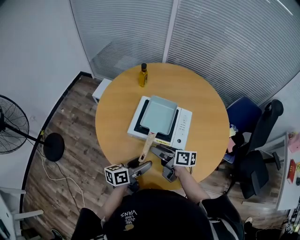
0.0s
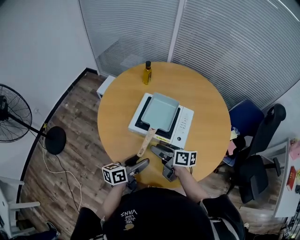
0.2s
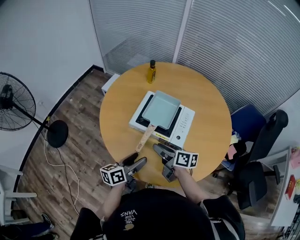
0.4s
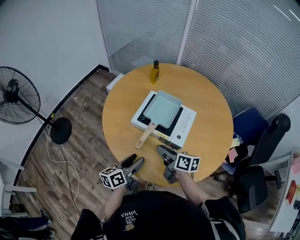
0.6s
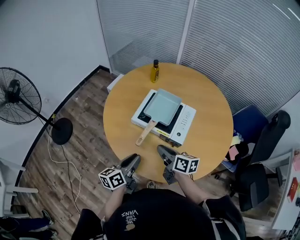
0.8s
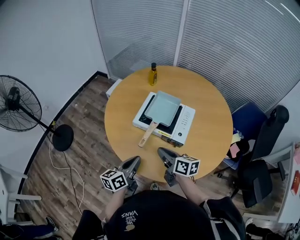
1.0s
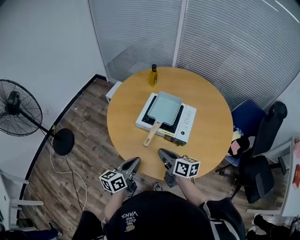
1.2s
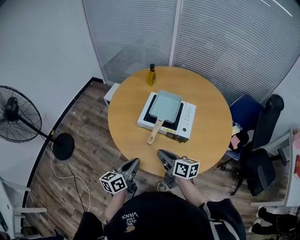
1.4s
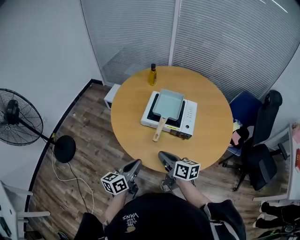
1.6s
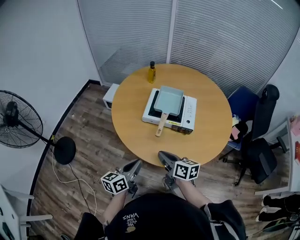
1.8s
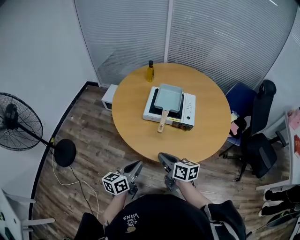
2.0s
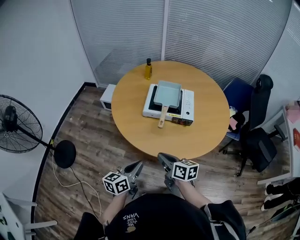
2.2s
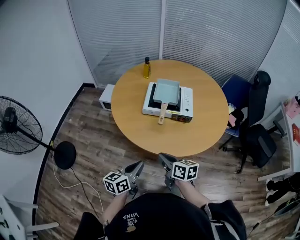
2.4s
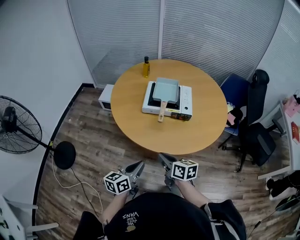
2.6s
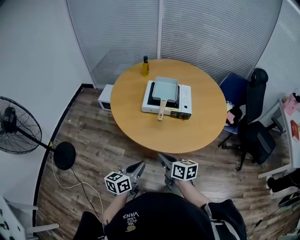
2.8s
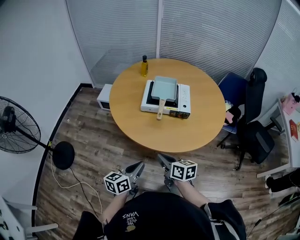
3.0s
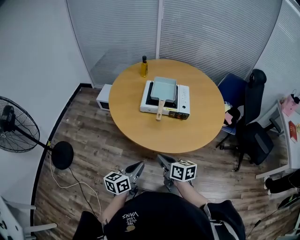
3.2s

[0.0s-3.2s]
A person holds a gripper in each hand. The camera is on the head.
0.0s to 1.6s: The right gripper moves backward and to the left, some 15 cm, turns by approximately 20 degrees, and closes up. The left gripper heads to the left and backward, covering approximately 15 cm, and closes up.
1.6s to 3.2s: Both grippers travel together backward, roughly 10 cm.

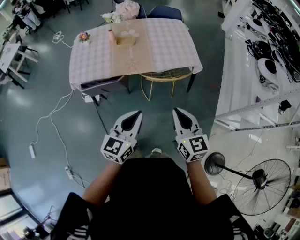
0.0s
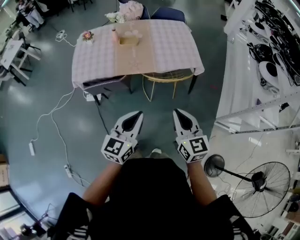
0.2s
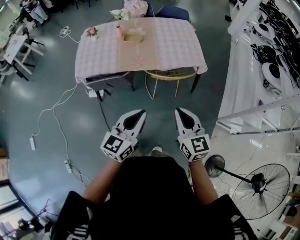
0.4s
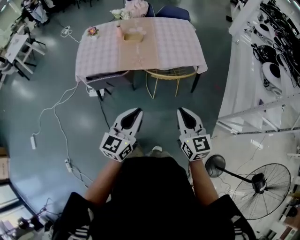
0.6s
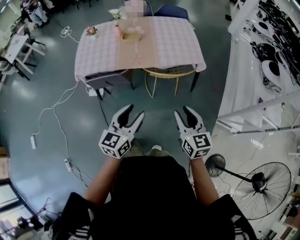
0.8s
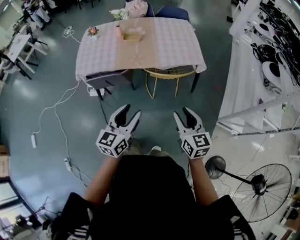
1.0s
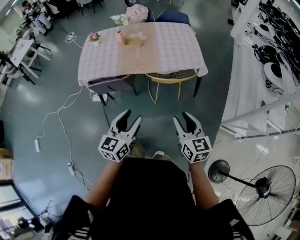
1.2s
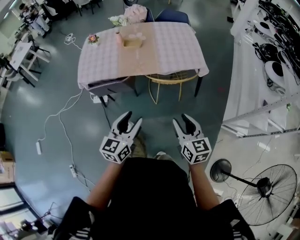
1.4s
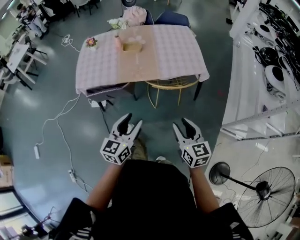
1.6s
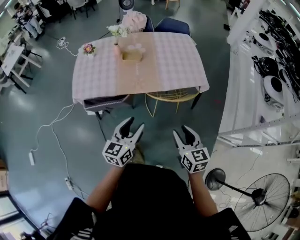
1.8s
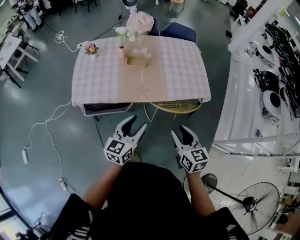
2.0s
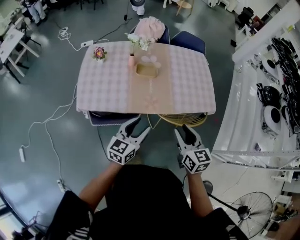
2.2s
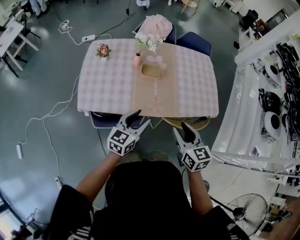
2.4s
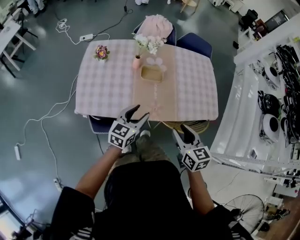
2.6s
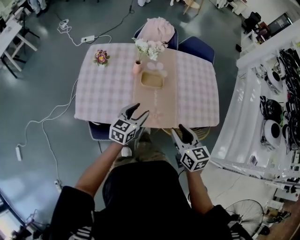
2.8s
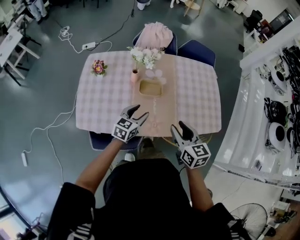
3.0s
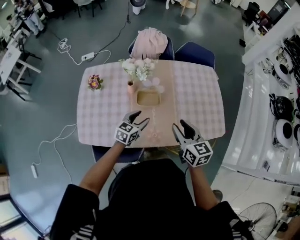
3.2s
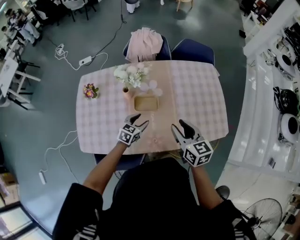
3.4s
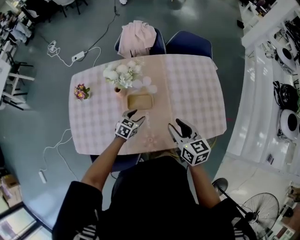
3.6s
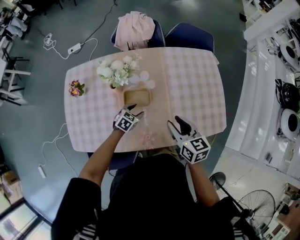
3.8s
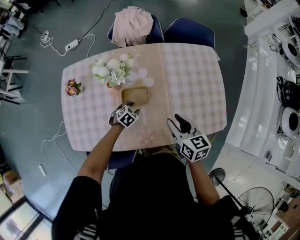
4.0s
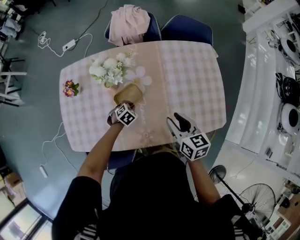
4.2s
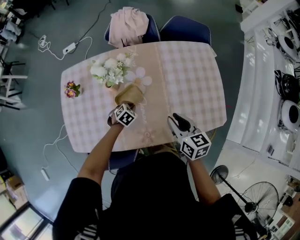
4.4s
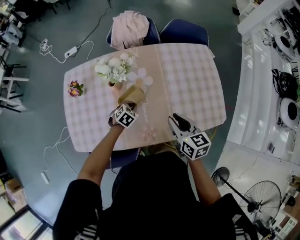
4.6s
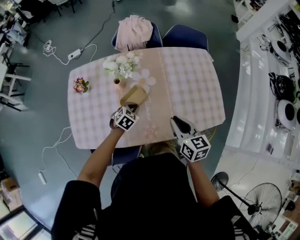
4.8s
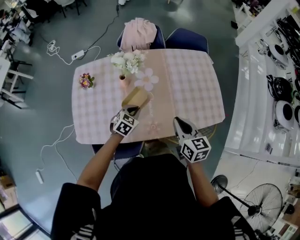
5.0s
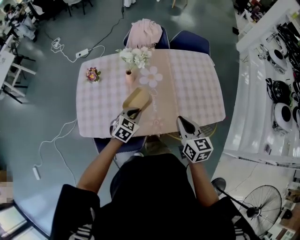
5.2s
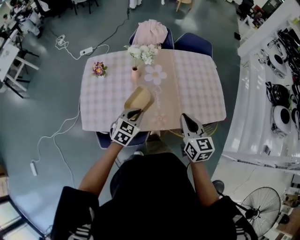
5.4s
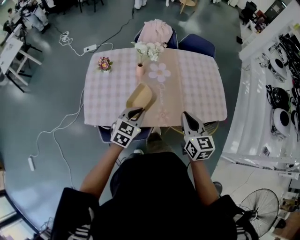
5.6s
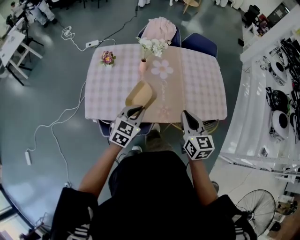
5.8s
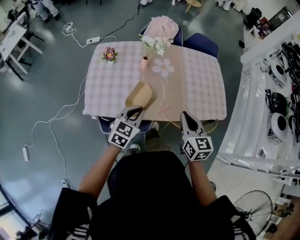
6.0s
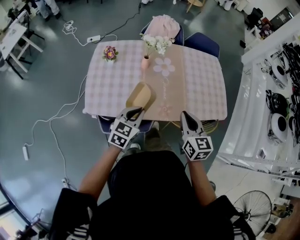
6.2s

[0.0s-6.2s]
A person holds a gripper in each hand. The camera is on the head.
0.0s to 1.6s: The left gripper changes place by approximately 5 cm, and opens up, while the right gripper moves downward, approximately 5 cm, and opens up.
1.6s to 3.2s: The pair of grippers is taken forward, about 50 cm. The left gripper swivels approximately 20 degrees.
3.2s to 4.6s: The left gripper travels downward and forward by roughly 15 cm, tips its fingers downward by roughly 30 degrees, and closes its fingers, while the right gripper goes roughly 10 cm forward and downward.
4.6s to 6.2s: The right gripper shifts roughly 20 cm backward and upward. Meanwhile the left gripper heads backward and upward, covering roughly 35 cm, and points its fingers roughly 40 degrees further upward.

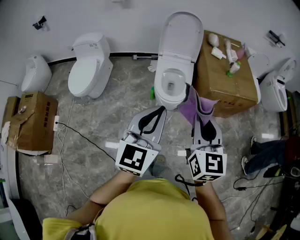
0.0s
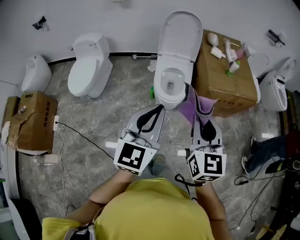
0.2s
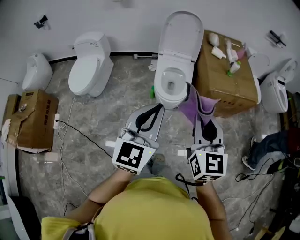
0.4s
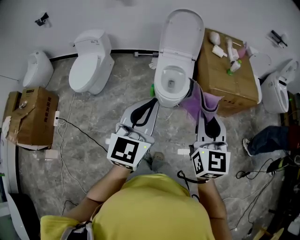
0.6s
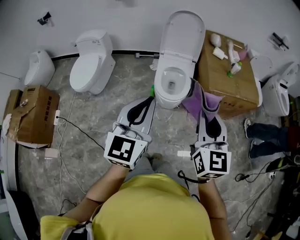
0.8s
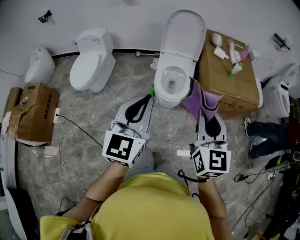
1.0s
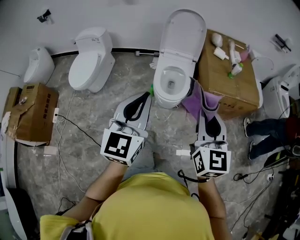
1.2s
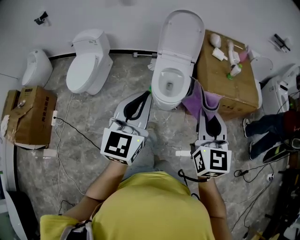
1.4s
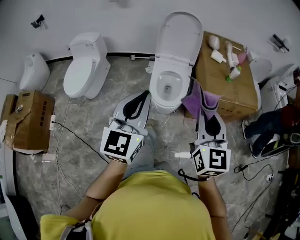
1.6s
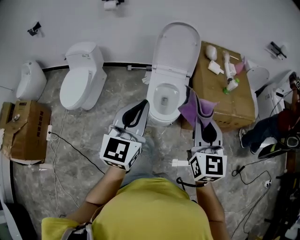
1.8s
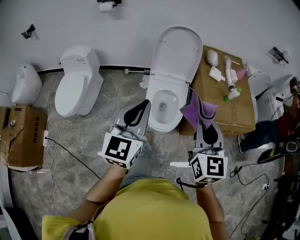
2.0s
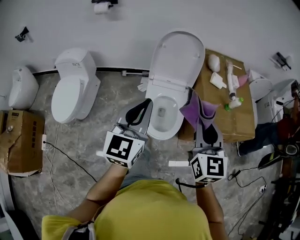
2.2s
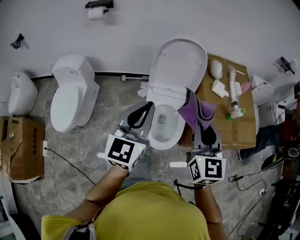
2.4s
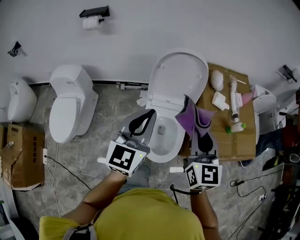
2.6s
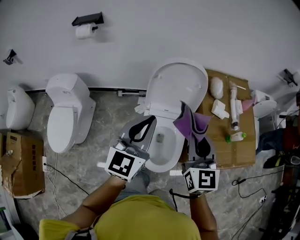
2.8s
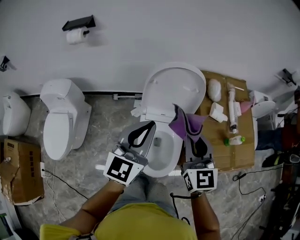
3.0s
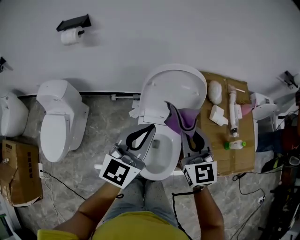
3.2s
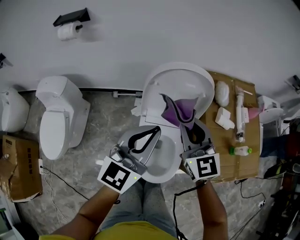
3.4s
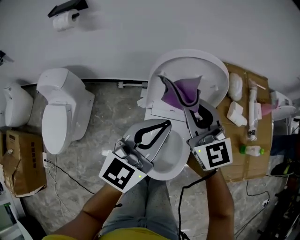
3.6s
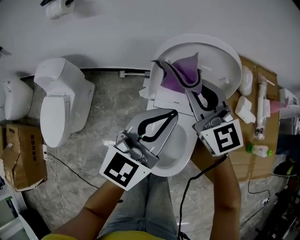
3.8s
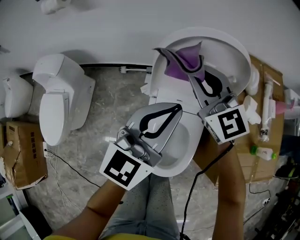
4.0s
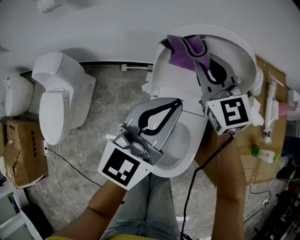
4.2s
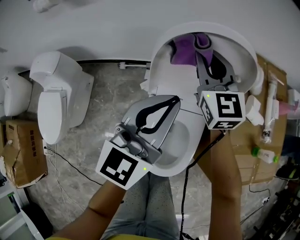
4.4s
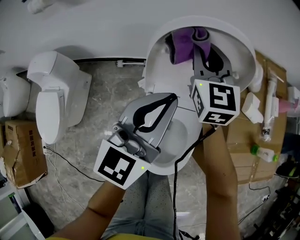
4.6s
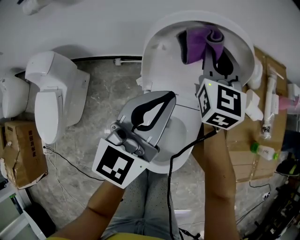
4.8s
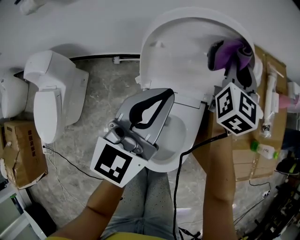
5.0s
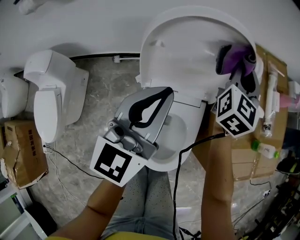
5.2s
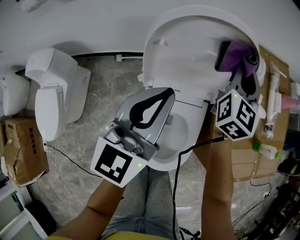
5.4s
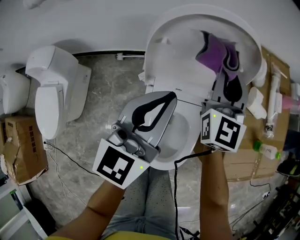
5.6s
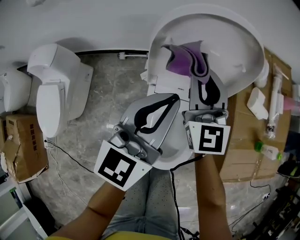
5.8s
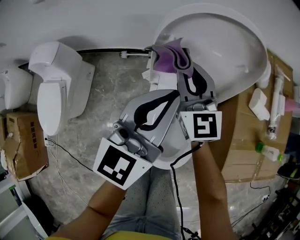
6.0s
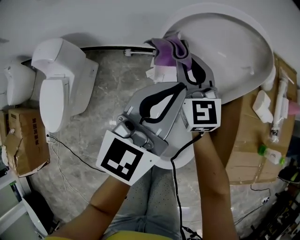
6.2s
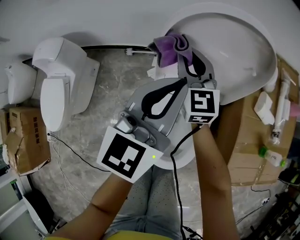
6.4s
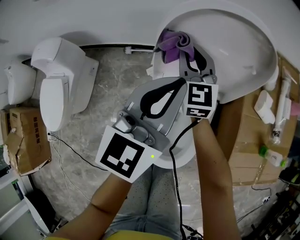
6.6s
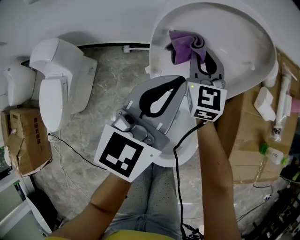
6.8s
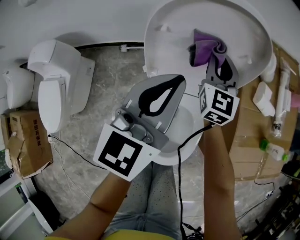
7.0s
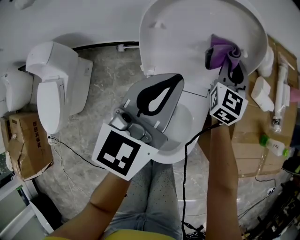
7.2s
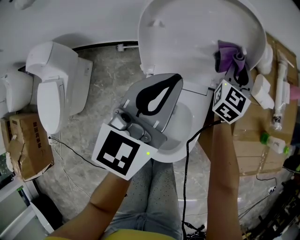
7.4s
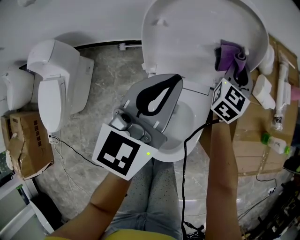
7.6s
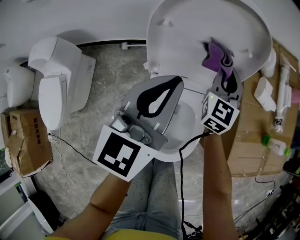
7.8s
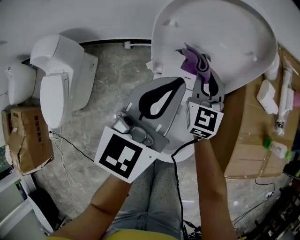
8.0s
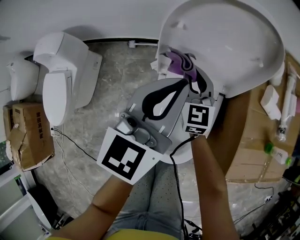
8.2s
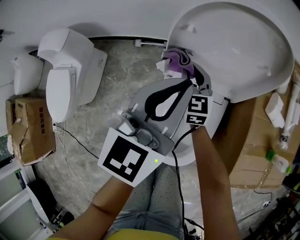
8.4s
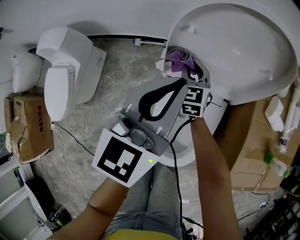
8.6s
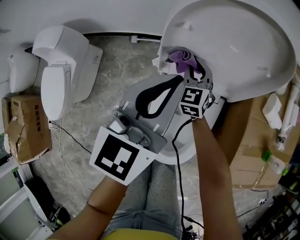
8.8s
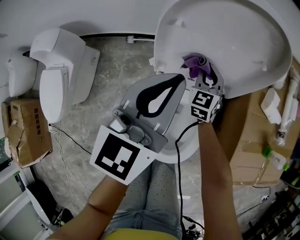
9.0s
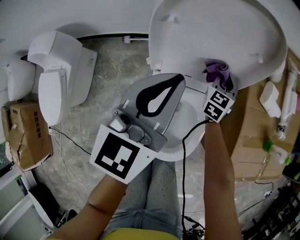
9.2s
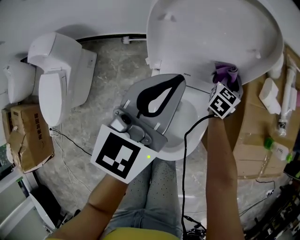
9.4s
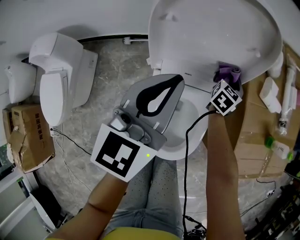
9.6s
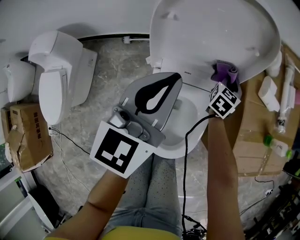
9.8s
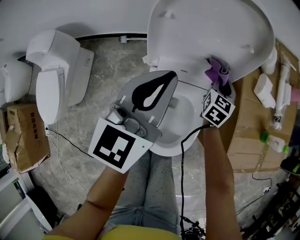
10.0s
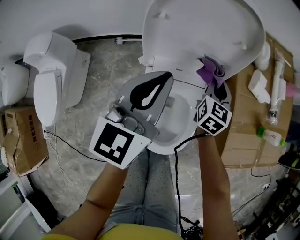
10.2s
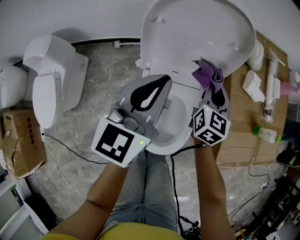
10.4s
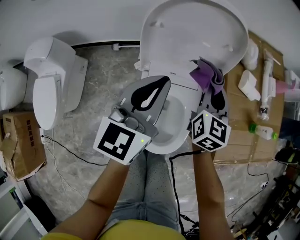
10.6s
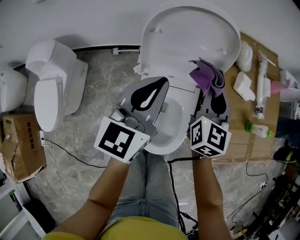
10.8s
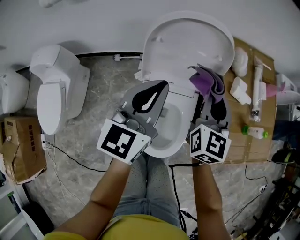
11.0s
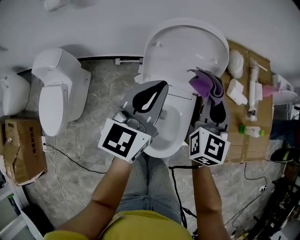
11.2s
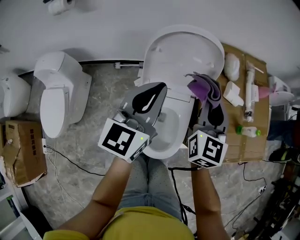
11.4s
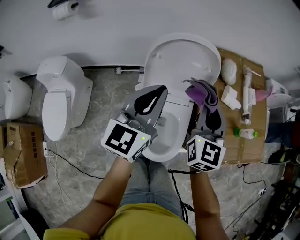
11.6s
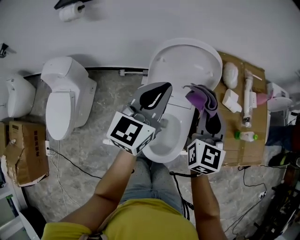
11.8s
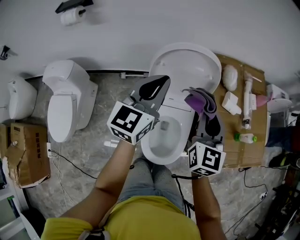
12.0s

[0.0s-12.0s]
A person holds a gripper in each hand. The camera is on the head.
0.0s to 1.6s: Both grippers move forward, about 10 cm.
1.6s to 3.0s: The pair of grippers is taken forward, approximately 50 cm.
3.0s to 4.4s: The left gripper is displaced forward and downward by about 20 cm, while the right gripper heads forward and downward, covering some 30 cm.
4.4s to 6.0s: The right gripper shifts approximately 10 cm backward and downward, and reaches about 15 cm to the right, then returns.
6.0s to 7.6s: The right gripper travels to the right by about 20 cm, and changes its angle by about 40 degrees.
7.6s to 9.0s: The right gripper moves to the left and downward, about 20 cm, and rotates some 30 degrees.
9.0s to 10.4s: The right gripper travels to the right, upward and backward by approximately 20 cm, and changes its angle by approximately 30 degrees, while the left gripper ends up some 5 cm from where it was.
10.4s to 12.0s: The left gripper is displaced upward by about 15 cm. Meanwhile the right gripper is displaced upward by approximately 25 cm.

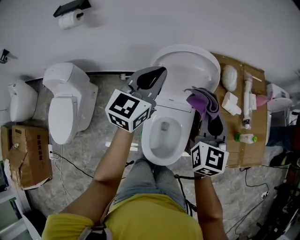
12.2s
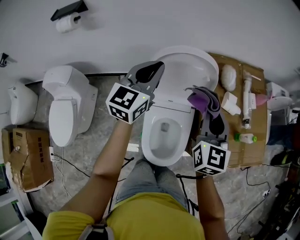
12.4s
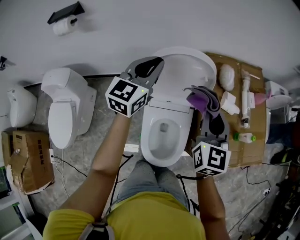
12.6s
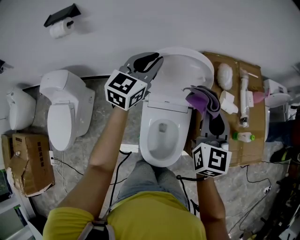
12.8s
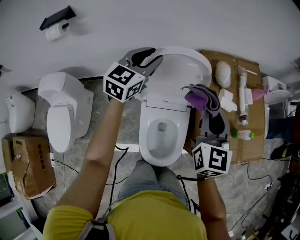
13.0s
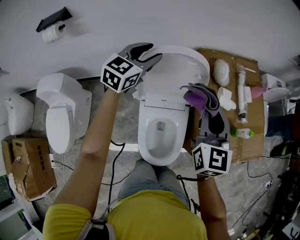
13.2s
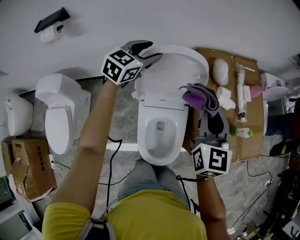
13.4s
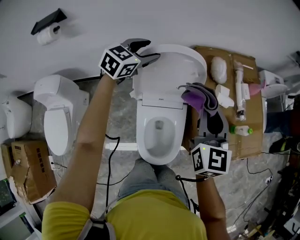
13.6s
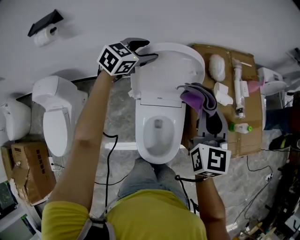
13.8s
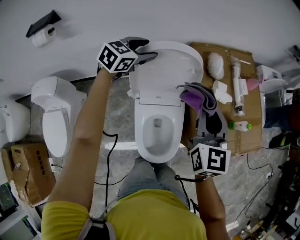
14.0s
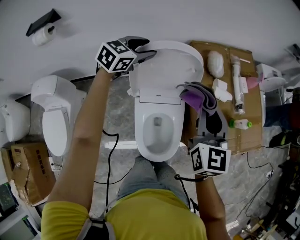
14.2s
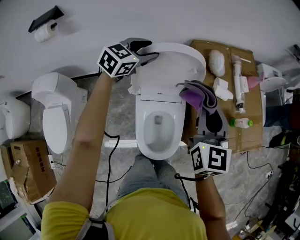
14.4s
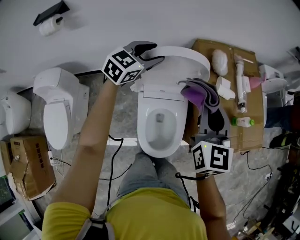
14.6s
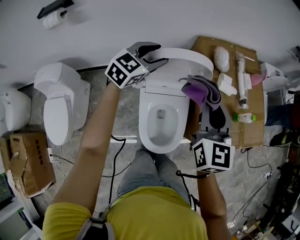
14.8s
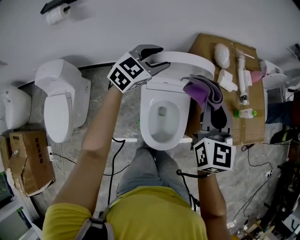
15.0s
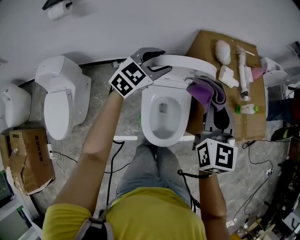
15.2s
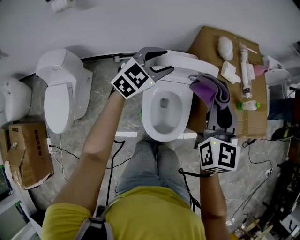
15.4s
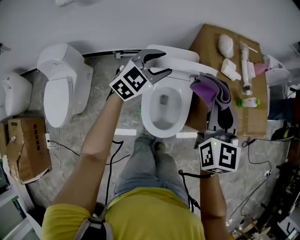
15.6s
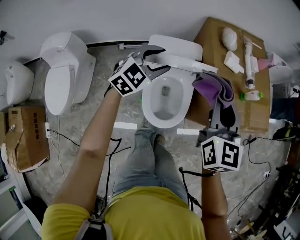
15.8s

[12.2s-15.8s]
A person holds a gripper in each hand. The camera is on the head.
12.2s to 14.0s: The left gripper moves forward and downward, some 15 cm, swivels approximately 40 degrees, and opens up.
14.0s to 15.8s: The right gripper is displaced backward and to the right by approximately 20 cm. The left gripper is displaced backward and to the right by some 30 cm.
